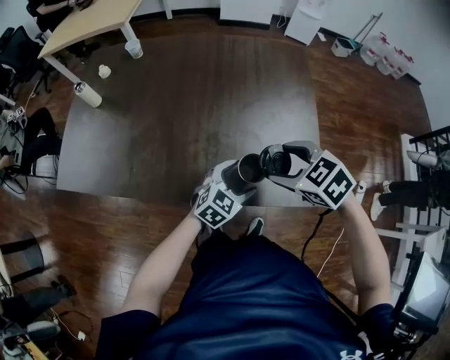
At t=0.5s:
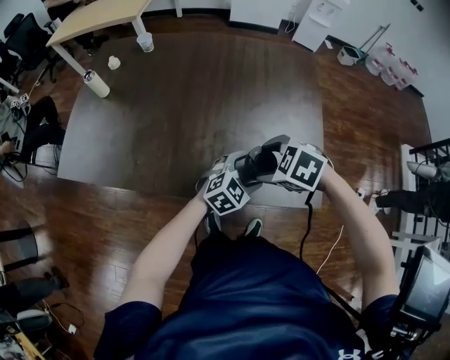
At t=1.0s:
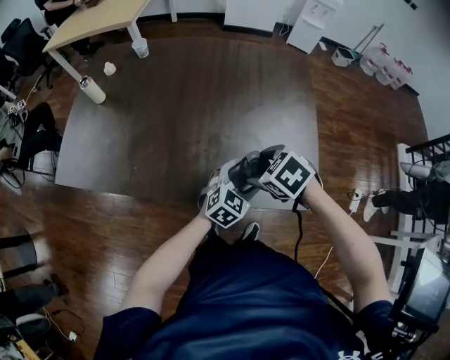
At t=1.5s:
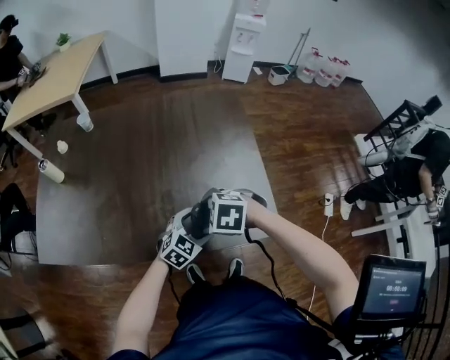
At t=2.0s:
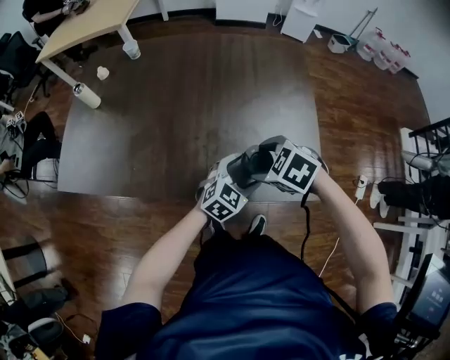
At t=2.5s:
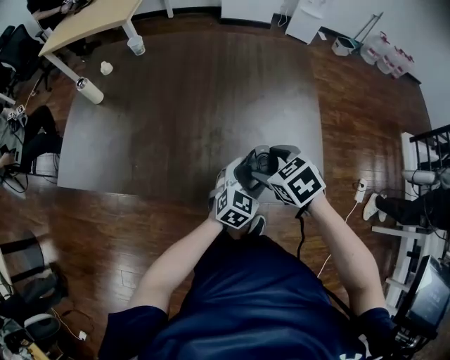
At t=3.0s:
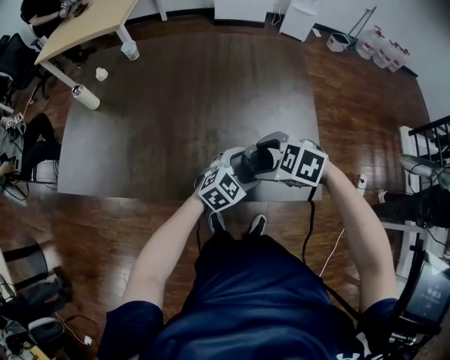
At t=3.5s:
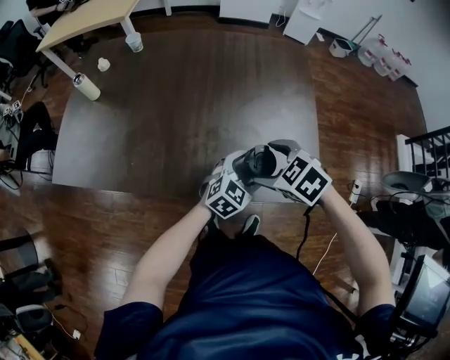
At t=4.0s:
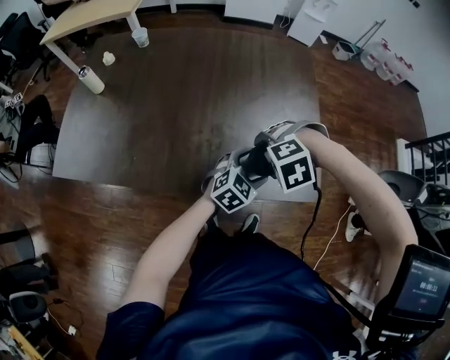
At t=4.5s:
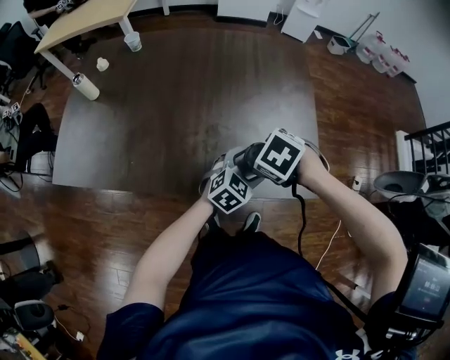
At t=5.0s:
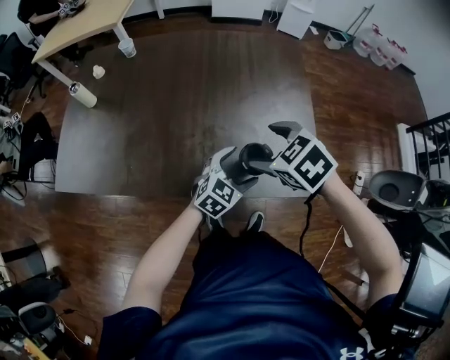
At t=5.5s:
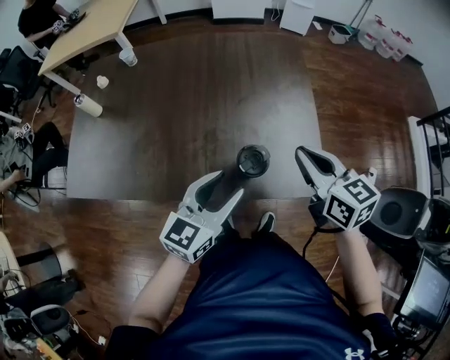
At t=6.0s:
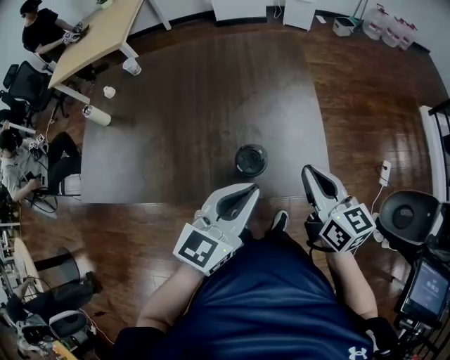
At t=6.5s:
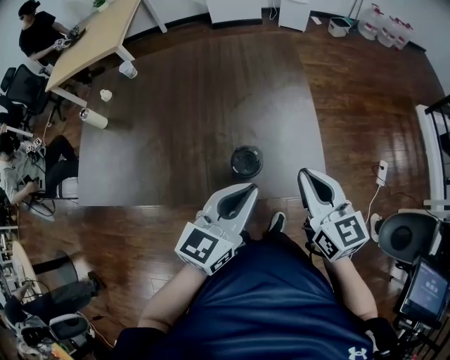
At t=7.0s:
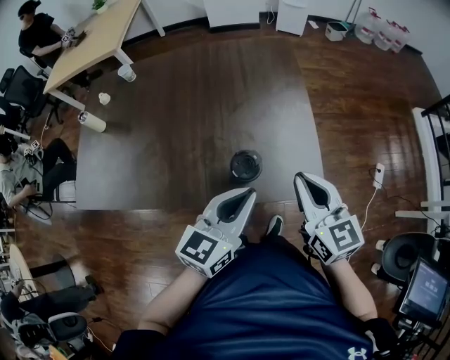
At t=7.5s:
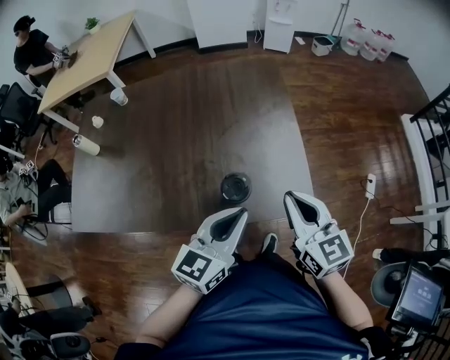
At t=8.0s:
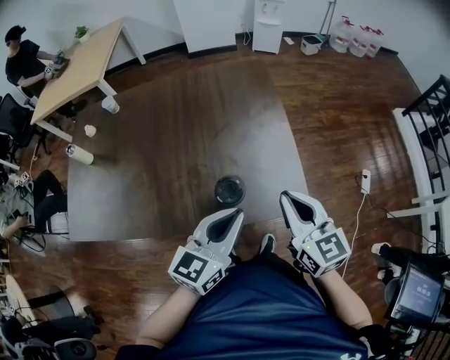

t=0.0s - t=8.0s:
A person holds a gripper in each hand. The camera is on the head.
t=0.0s - t=2.0s: The right gripper shifts by approximately 5 cm.
t=2.0s - t=4.0s: The right gripper rolls counterclockwise, seen from behind, by some 50 degrees.
t=4.0s - t=6.0s: The right gripper changes place by some 20 cm, tilts its fingers about 70 degrees upward, and closes; the left gripper goes about 20 cm upward, changes its angle by about 30 degrees, and closes its fingers.
t=6.0s - t=8.0s: The grippers move only a little.

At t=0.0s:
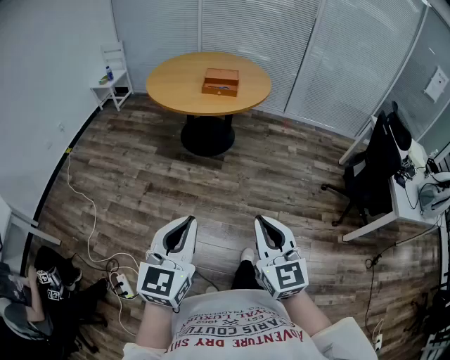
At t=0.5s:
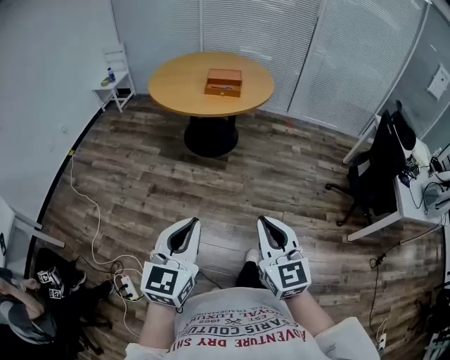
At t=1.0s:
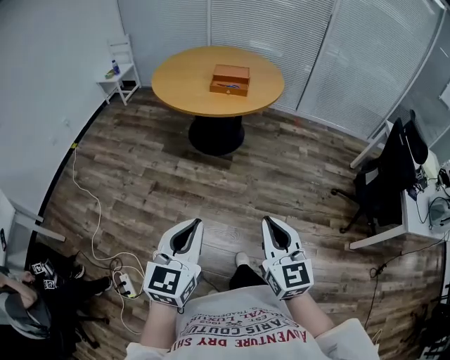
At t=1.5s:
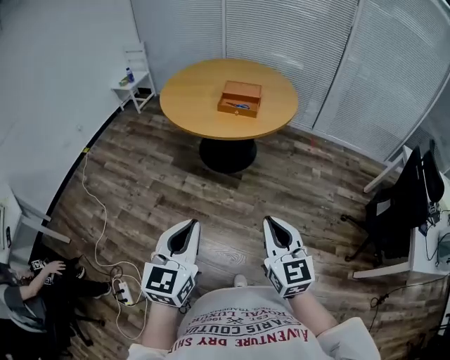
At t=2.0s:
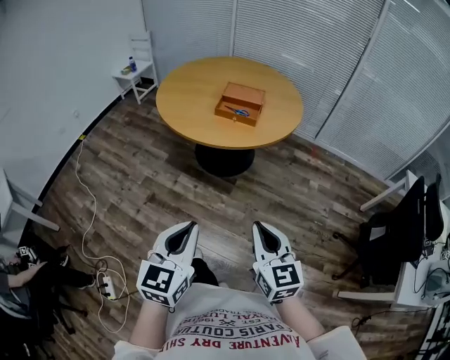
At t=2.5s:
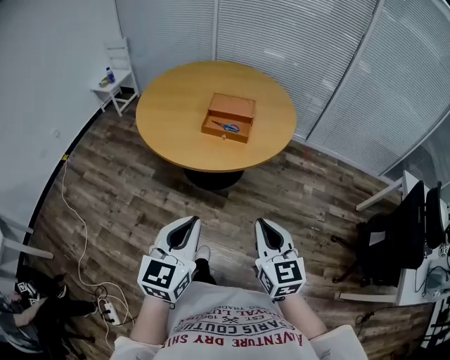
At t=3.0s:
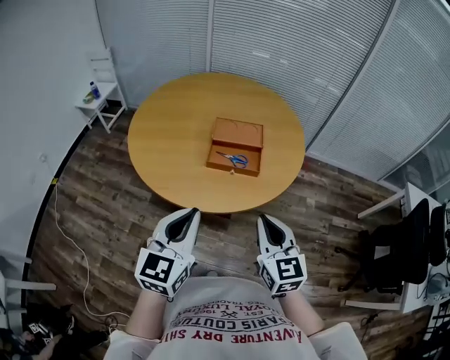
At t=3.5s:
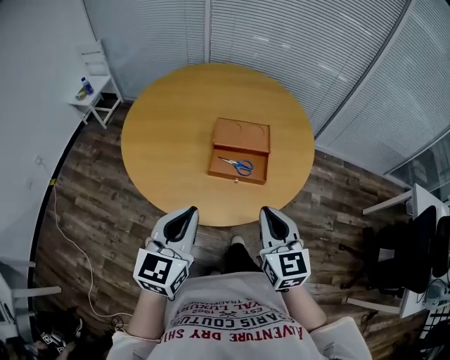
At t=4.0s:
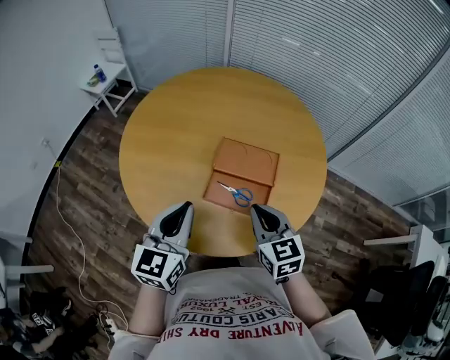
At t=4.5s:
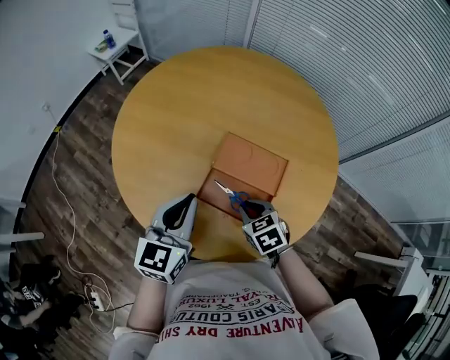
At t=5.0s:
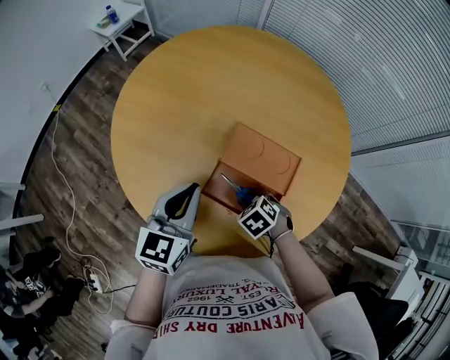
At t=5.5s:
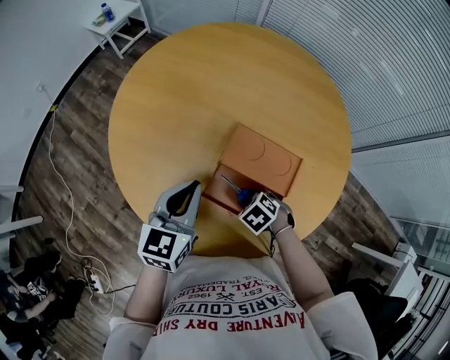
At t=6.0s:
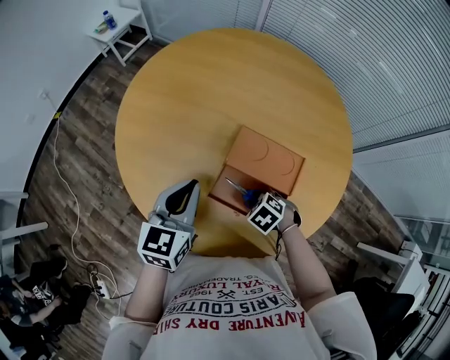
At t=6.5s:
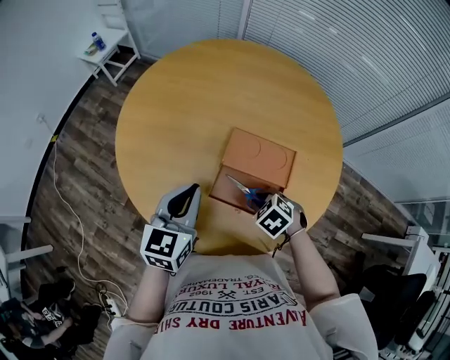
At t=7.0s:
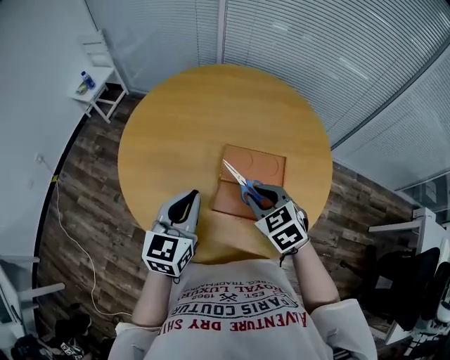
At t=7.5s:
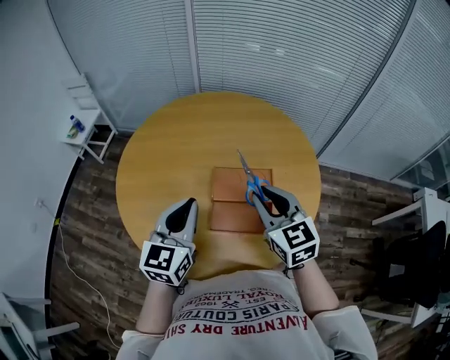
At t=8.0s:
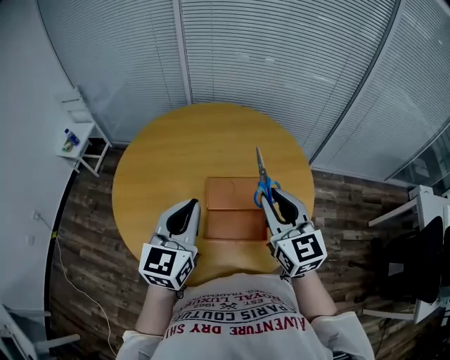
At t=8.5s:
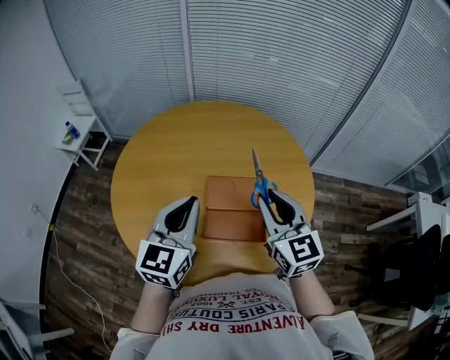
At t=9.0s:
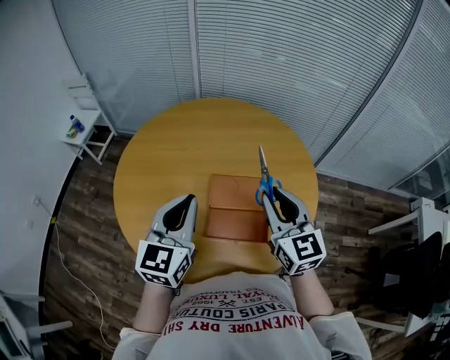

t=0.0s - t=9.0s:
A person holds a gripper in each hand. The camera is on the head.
t=0.0s - t=2.0s: The two grippers go approximately 30 cm forward.
t=2.0s - t=4.5s: The pair of grippers is taken about 70 cm. The right gripper tilts its fingers approximately 40 degrees downward.
t=4.5s - t=7.0s: The left gripper moves about 5 cm. The right gripper shifts about 10 cm upward.
t=7.0s - t=9.0s: The left gripper goes about 10 cm upward. The right gripper is displaced upward and to the right by about 15 cm, and tilts its fingers about 40 degrees upward.

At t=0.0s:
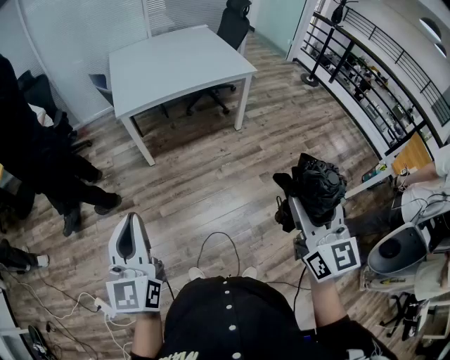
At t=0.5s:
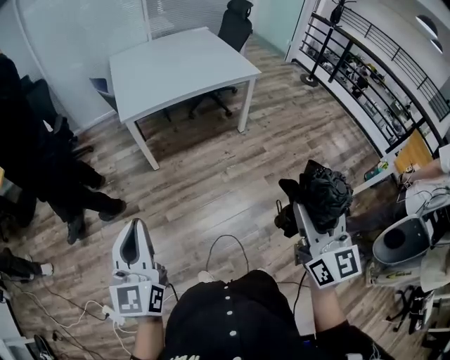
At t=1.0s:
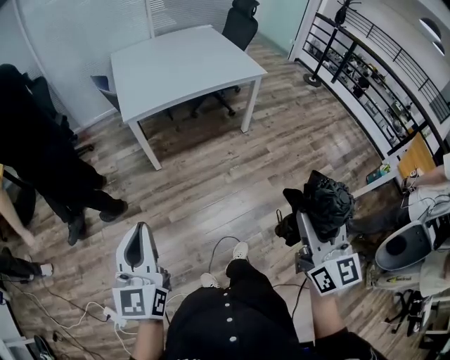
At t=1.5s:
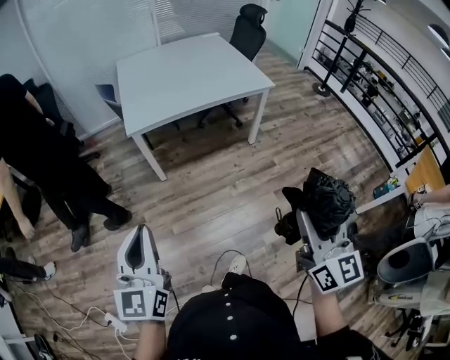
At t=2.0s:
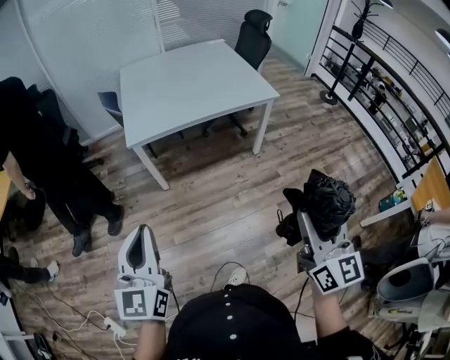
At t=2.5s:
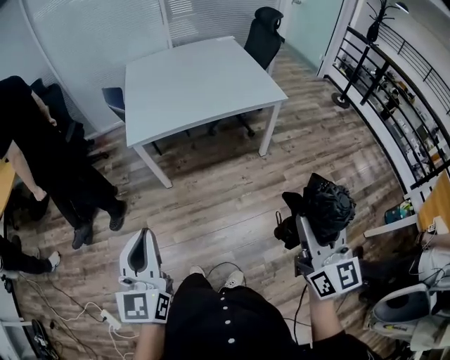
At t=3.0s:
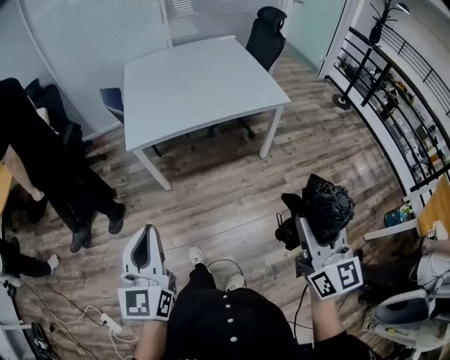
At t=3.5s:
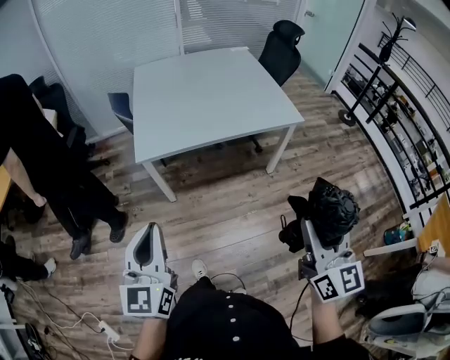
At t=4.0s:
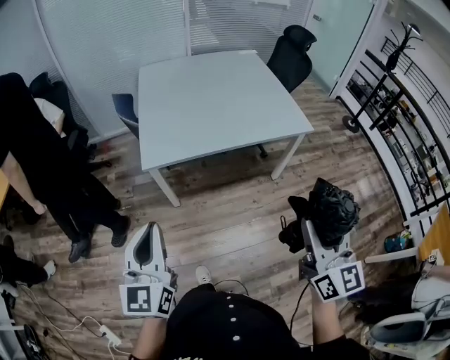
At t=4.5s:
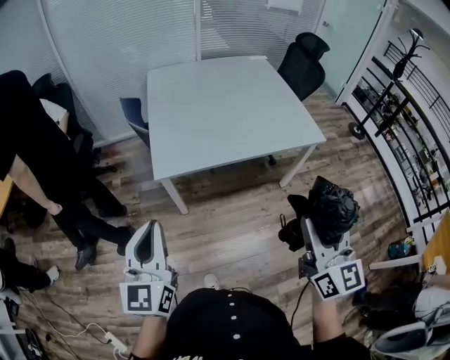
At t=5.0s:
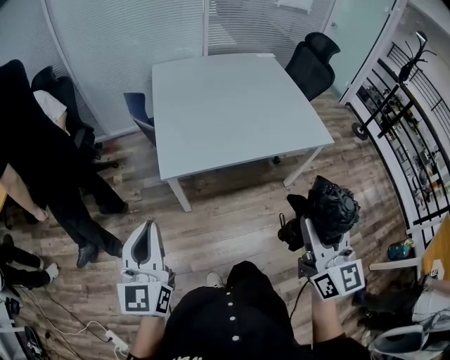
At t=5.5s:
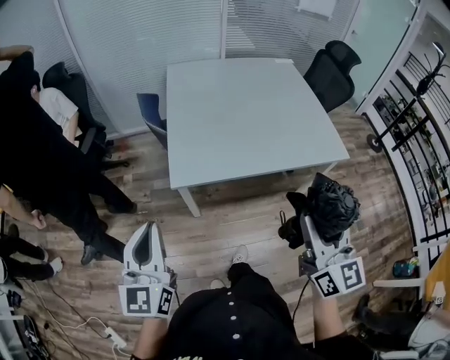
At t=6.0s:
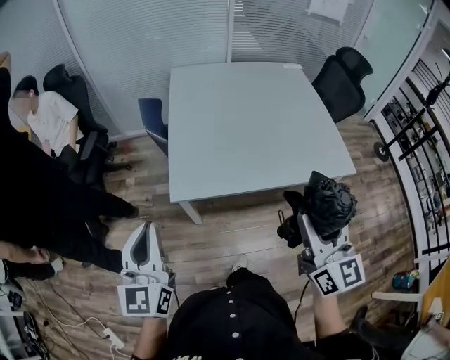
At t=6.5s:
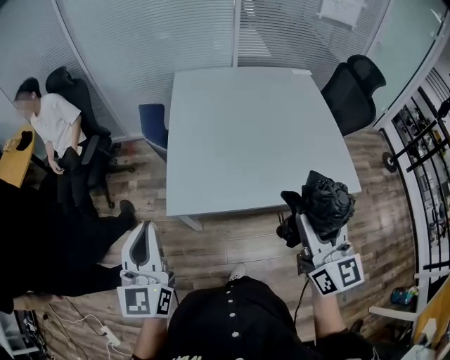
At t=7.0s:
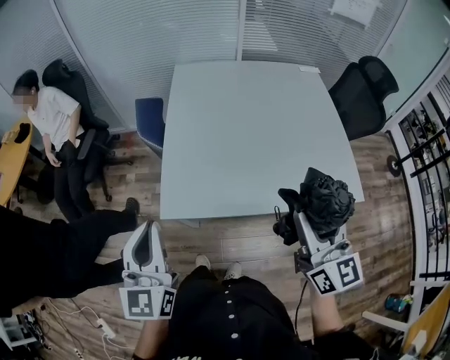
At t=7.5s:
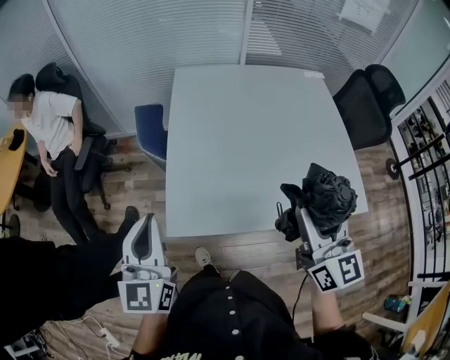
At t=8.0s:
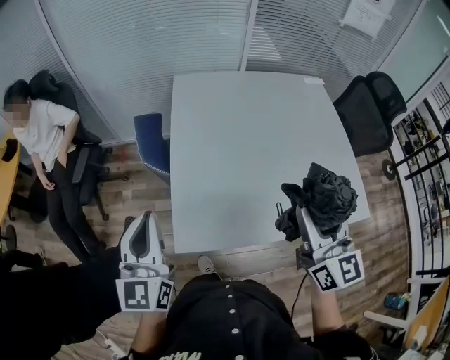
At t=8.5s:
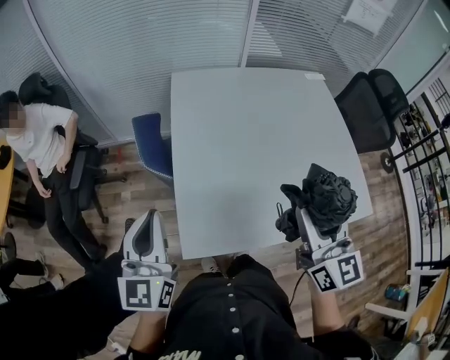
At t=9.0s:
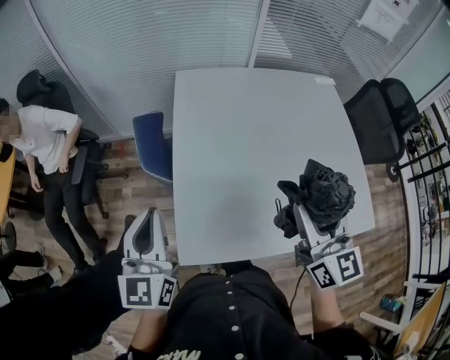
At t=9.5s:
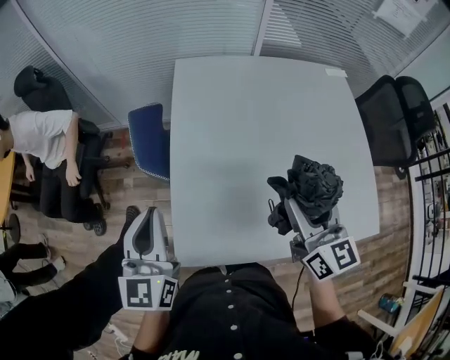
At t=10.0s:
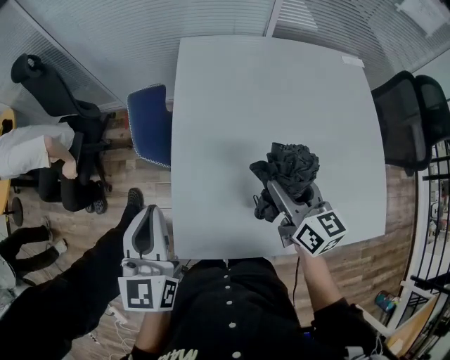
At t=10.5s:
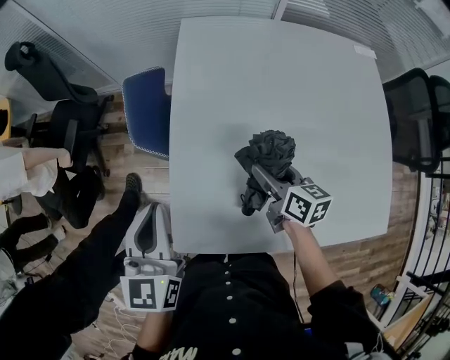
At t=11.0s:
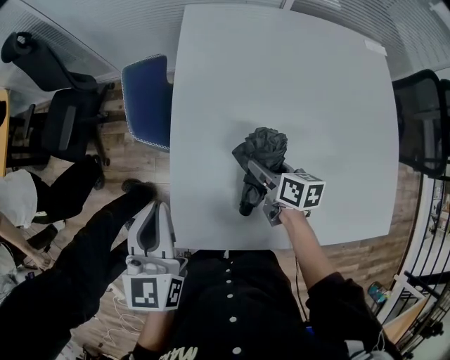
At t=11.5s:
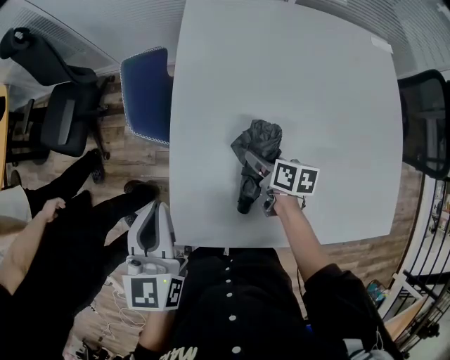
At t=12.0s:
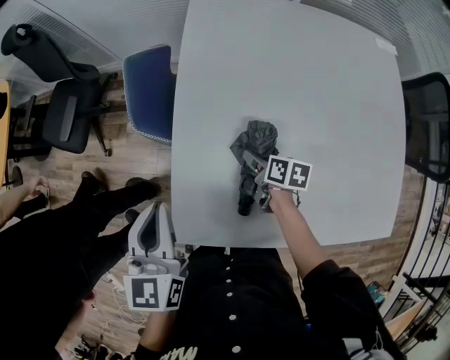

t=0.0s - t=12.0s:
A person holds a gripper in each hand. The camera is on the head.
t=0.0s - t=2.0s: Both grippers move forward, about 15 cm.
t=2.0s - t=4.0s: Both grippers travel together forward, some 20 cm.
t=4.0s - t=6.0s: The grippers both shift forward and to the left by about 25 cm.
t=6.0s - t=8.0s: Both grippers move forward, some 25 cm.
t=8.0s - t=10.0s: The right gripper goes some 25 cm forward and downward, and turns by roughly 30 degrees. The left gripper shifts roughly 15 cm forward and downward.
t=10.0s - t=12.0s: The left gripper is displaced downward by approximately 5 cm; the right gripper heads downward, covering approximately 25 cm, and tilts its fingers some 30 degrees downward.
